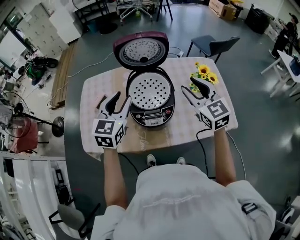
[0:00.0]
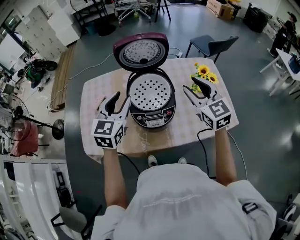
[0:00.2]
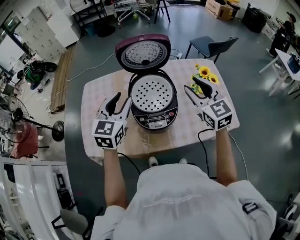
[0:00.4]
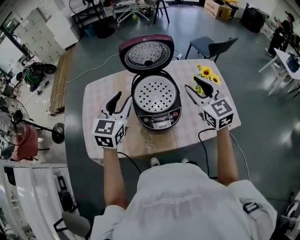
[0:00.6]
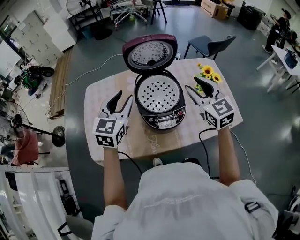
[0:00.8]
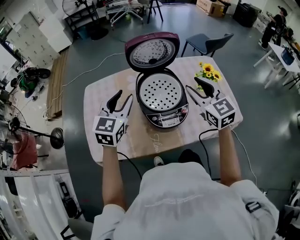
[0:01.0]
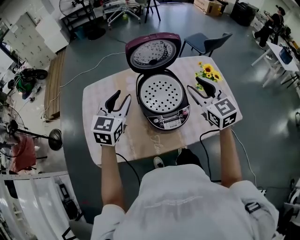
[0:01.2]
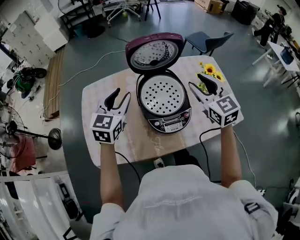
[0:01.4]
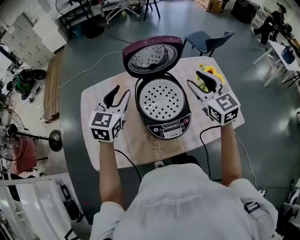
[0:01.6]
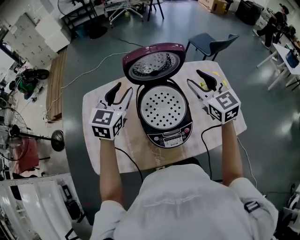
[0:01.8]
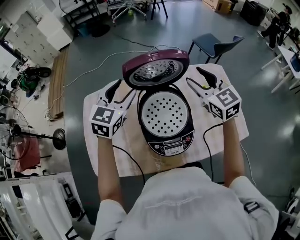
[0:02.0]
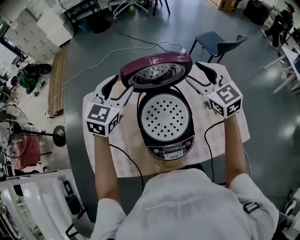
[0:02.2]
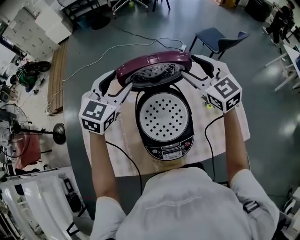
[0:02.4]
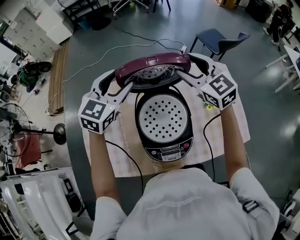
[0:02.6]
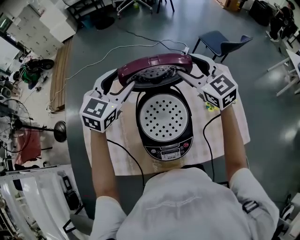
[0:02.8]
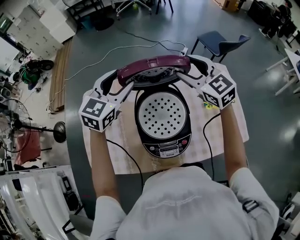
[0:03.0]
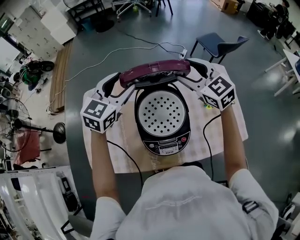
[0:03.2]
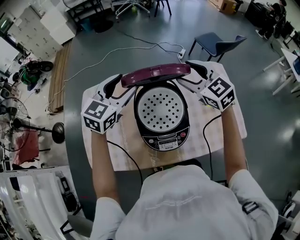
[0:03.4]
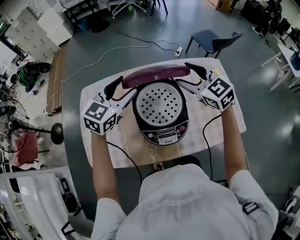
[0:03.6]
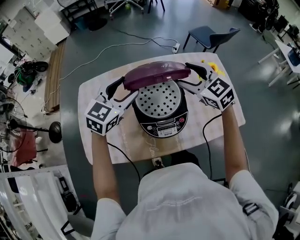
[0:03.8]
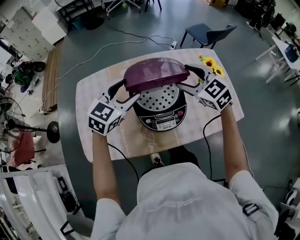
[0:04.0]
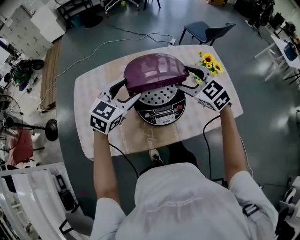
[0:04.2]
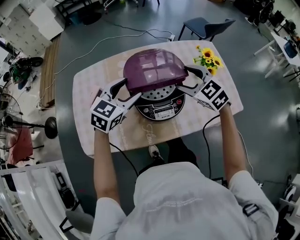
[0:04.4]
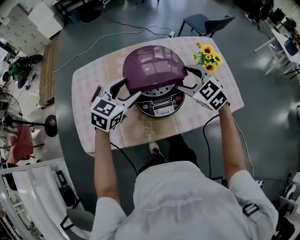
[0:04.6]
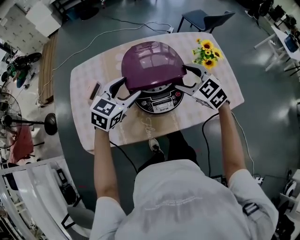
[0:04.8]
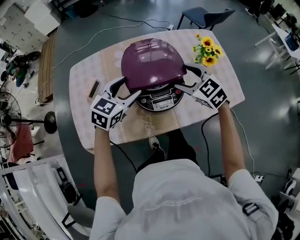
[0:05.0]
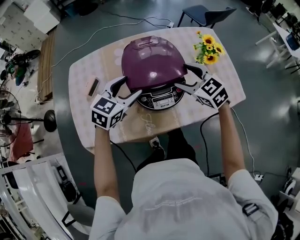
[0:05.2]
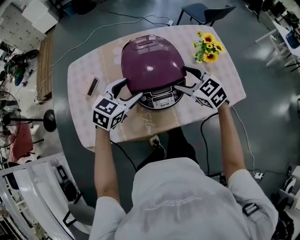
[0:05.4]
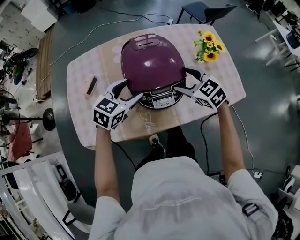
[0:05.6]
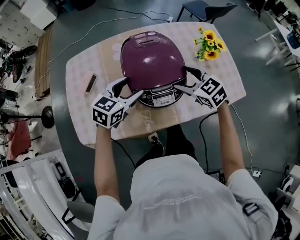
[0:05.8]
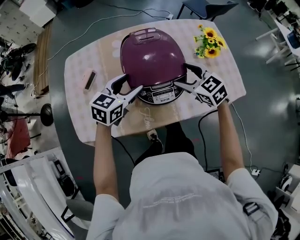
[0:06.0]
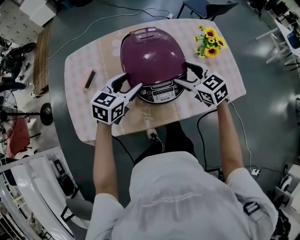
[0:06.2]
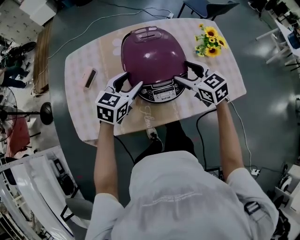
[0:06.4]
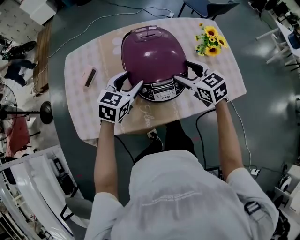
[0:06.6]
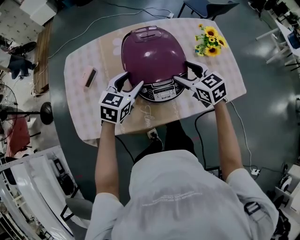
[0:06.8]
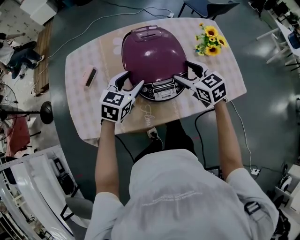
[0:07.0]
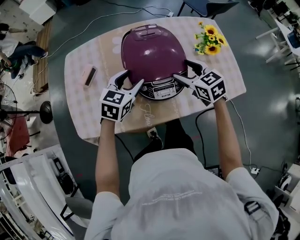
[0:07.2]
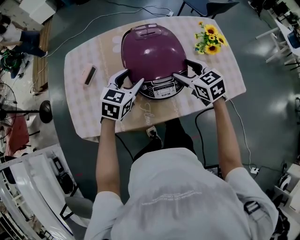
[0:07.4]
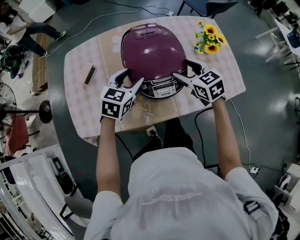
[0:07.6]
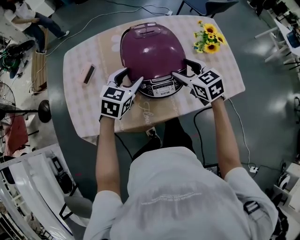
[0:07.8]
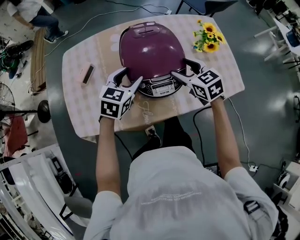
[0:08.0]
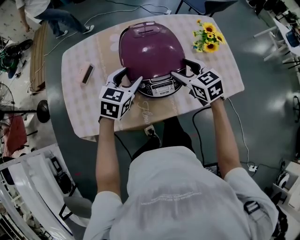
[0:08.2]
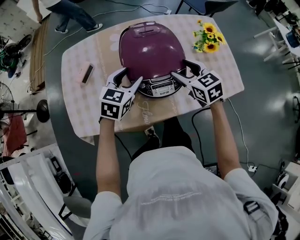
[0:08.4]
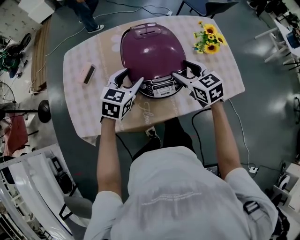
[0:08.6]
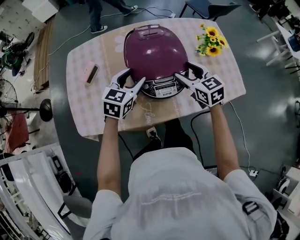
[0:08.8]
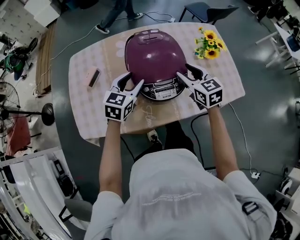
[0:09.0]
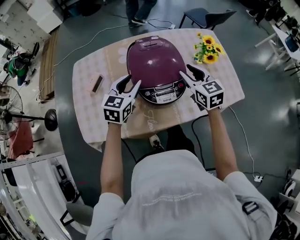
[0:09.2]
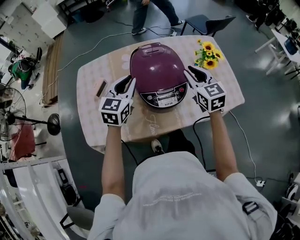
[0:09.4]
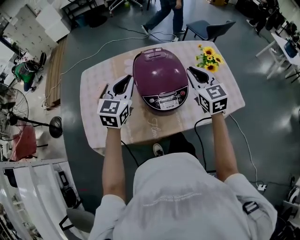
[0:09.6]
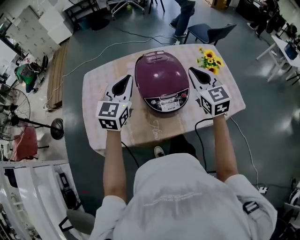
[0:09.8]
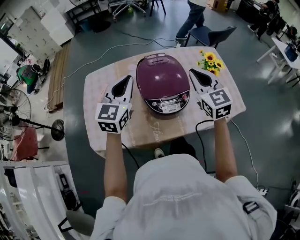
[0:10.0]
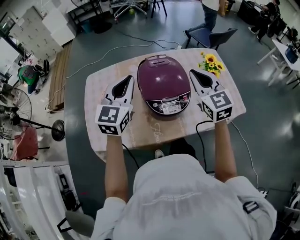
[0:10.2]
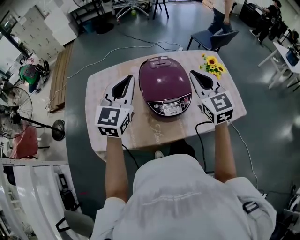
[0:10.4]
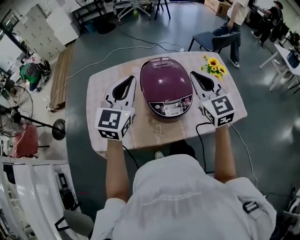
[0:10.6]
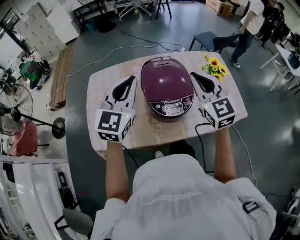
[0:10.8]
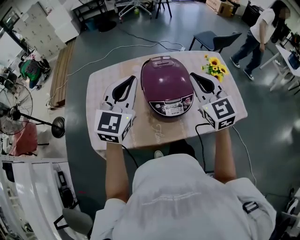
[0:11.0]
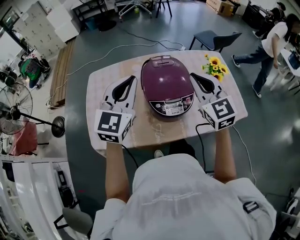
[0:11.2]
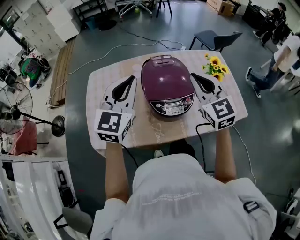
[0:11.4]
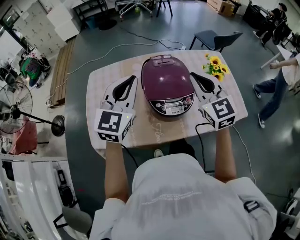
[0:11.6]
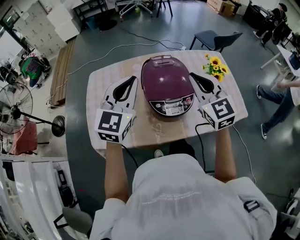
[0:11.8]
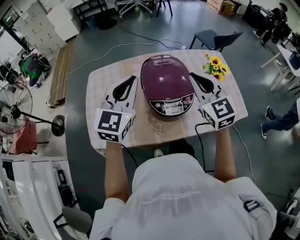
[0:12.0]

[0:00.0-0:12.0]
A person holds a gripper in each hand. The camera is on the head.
0:00.0 to 0:01.6: The left gripper is displaced forward and to the left by approximately 15 cm; the right gripper is displaced forward by about 5 cm.
0:01.6 to 0:03.0: Both grippers move forward, roughly 10 cm.
0:03.0 to 0:04.4: Both grippers travel together backward and downward, some 20 cm.
0:04.4 to 0:06.0: The two grippers go roughly 5 cm downward.
0:06.0 to 0:07.6: The grippers stay close to where they were, moving slightly.
0:07.6 to 0:09.0: There are only small adjustments of the grippers.
0:09.0 to 0:10.4: The two grippers go about 20 cm upward. The left gripper changes its angle by roughly 30 degrees, and closes up; the right gripper changes its angle by some 20 degrees, and closes up.
0:10.4 to 0:12.0: There are only small adjustments of the grippers.

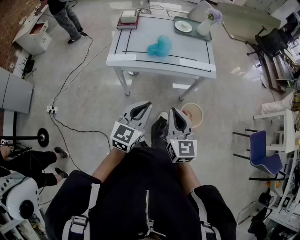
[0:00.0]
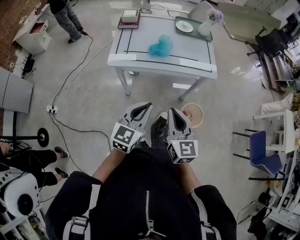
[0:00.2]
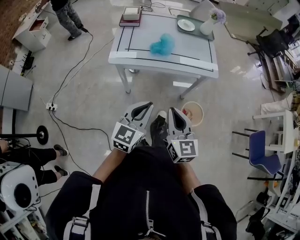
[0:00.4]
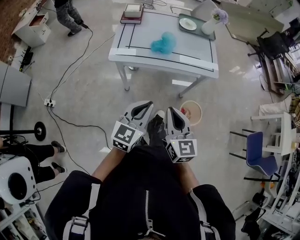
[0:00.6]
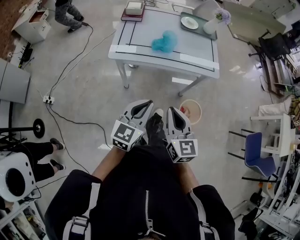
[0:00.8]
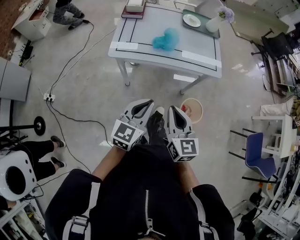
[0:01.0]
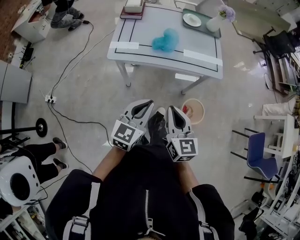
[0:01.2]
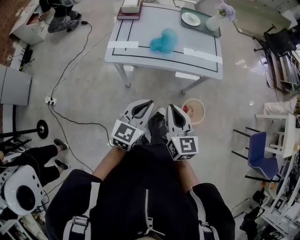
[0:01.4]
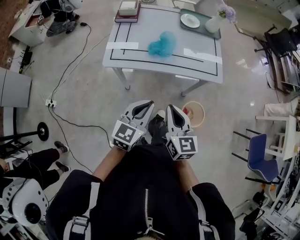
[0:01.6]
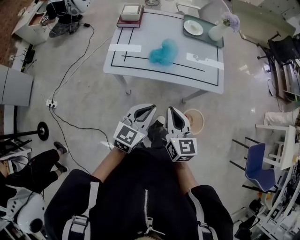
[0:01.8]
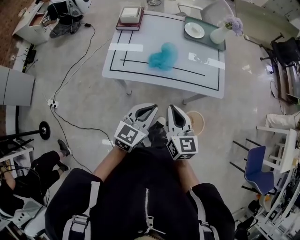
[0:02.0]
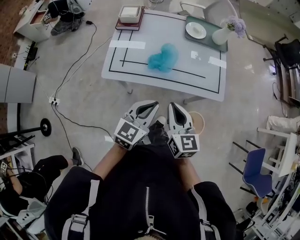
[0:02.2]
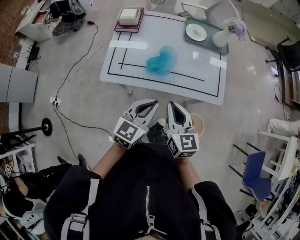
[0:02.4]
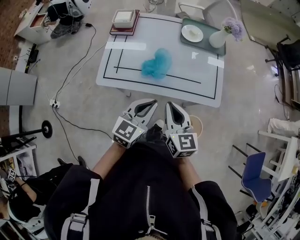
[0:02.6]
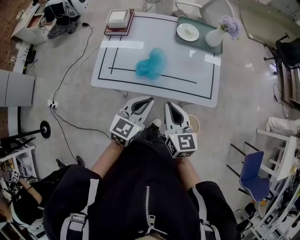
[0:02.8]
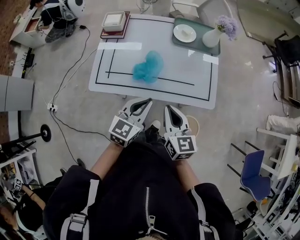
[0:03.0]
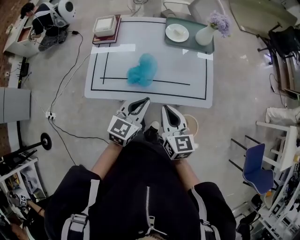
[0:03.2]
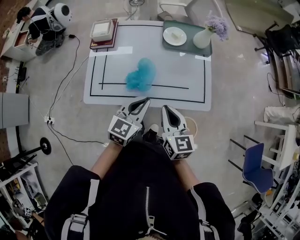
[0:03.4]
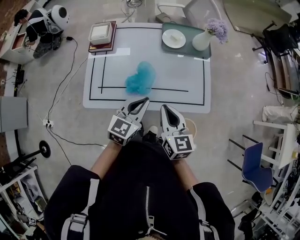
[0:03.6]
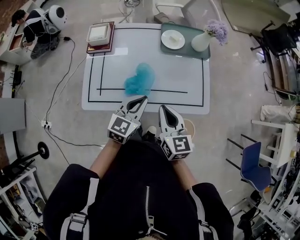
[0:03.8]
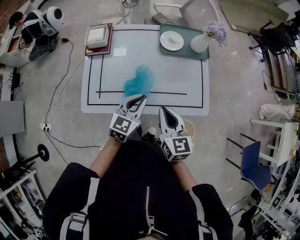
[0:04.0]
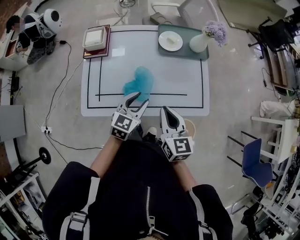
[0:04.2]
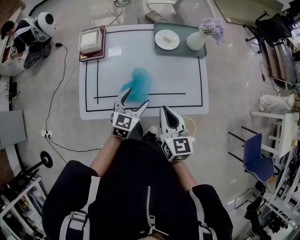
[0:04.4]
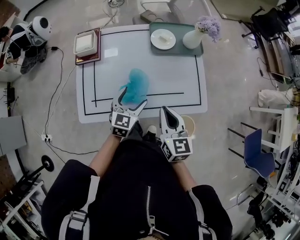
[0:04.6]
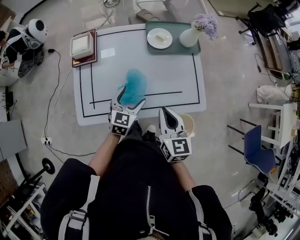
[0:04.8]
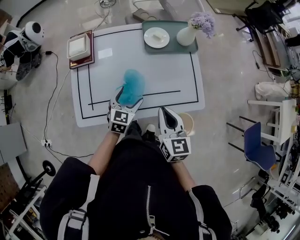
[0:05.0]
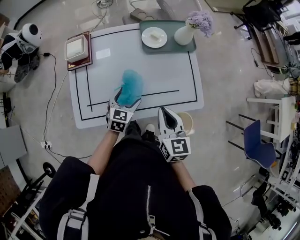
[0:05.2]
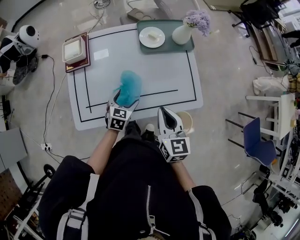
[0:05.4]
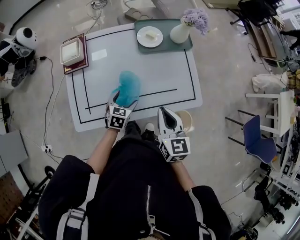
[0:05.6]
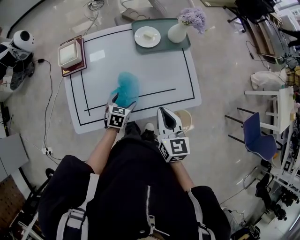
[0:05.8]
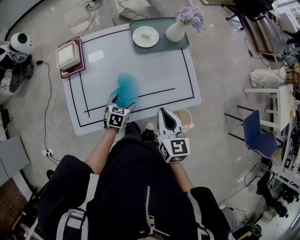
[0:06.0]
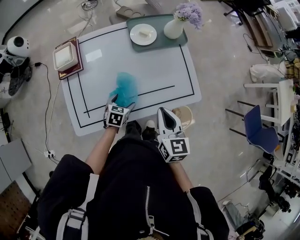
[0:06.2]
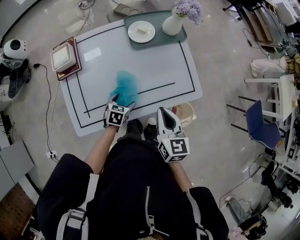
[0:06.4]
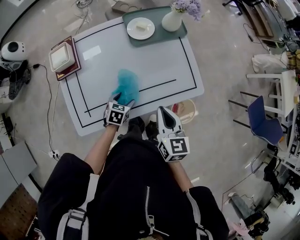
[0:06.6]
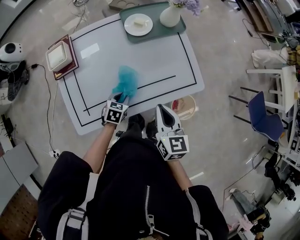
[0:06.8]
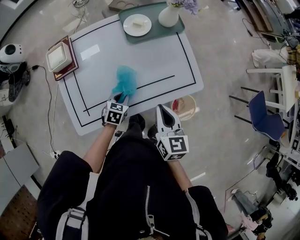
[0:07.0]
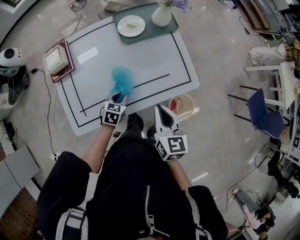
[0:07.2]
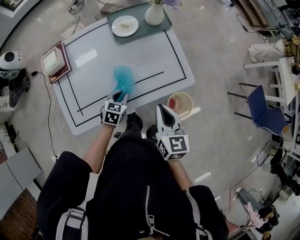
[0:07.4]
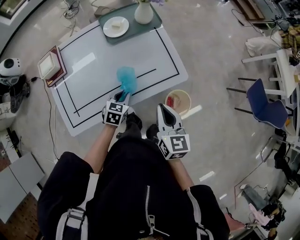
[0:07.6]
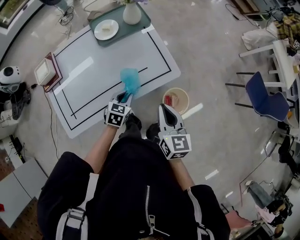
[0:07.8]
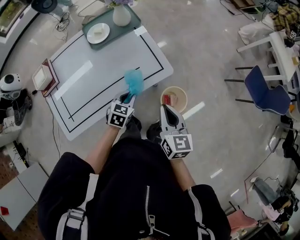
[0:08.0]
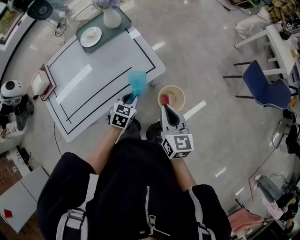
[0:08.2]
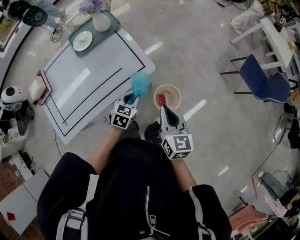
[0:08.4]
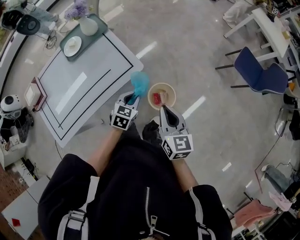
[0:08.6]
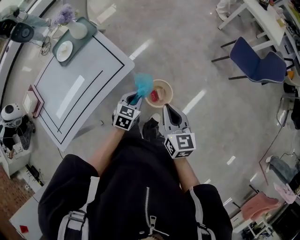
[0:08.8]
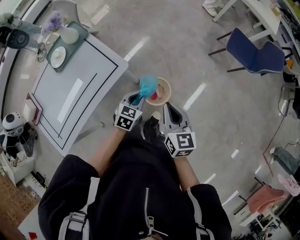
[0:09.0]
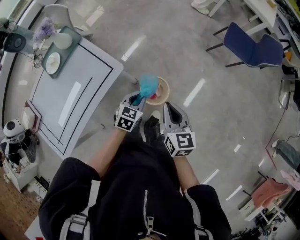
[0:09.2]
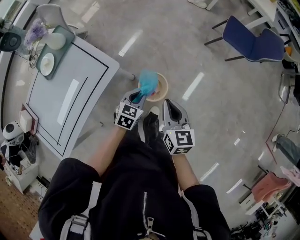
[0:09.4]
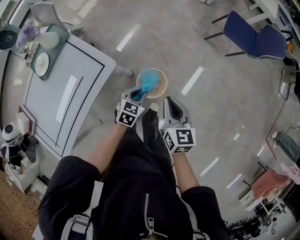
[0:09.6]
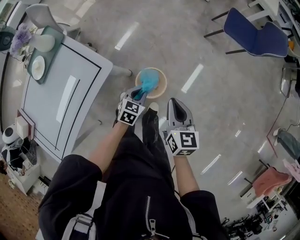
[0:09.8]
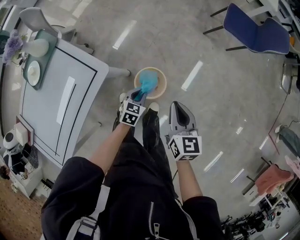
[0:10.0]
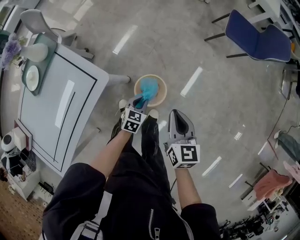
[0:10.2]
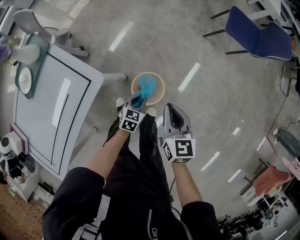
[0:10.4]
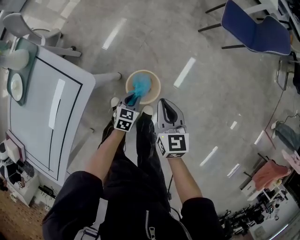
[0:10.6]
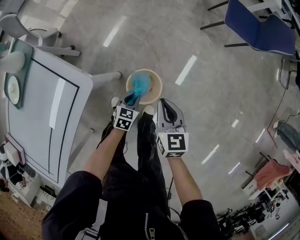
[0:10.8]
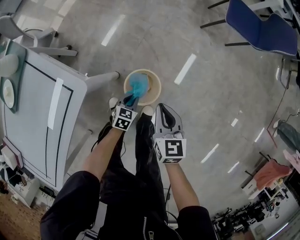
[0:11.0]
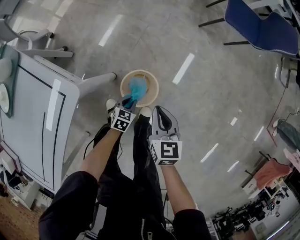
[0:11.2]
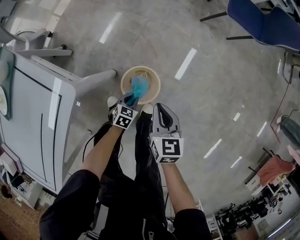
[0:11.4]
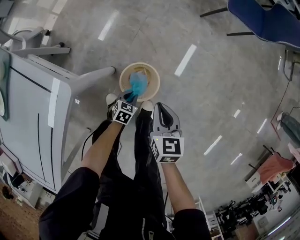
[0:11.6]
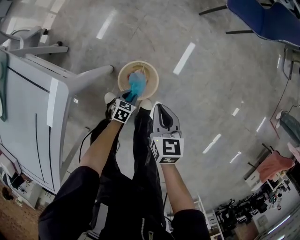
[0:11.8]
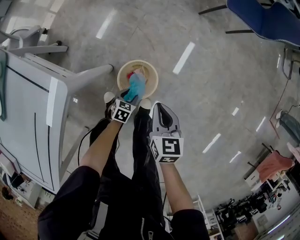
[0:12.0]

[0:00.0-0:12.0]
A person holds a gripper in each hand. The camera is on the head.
0:00.0 to 0:01.6: The grippers both shift forward by approximately 10 cm.
0:01.6 to 0:03.0: The grippers both shift forward by approximately 20 cm.
0:03.0 to 0:04.4: The right gripper goes roughly 10 cm forward. The left gripper goes approximately 15 cm forward and downward, and opens its fingers.
0:04.4 to 0:06.0: The left gripper travels downward by some 15 cm, and changes its angle by some 30 degrees.
0:06.0 to 0:07.6: Both grippers move to the right, roughly 10 cm. The left gripper closes its fingers.
0:07.6 to 0:09.0: The grippers both shift to the right by about 35 cm. The left gripper rotates approximately 30 degrees. The right gripper swivels roughly 20 degrees.
0:09.0 to 0:10.4: The left gripper moves downward, some 20 cm. Meanwhile the right gripper heads downward and forward, covering roughly 15 cm.
0:10.4 to 0:12.0: Both grippers move downward, some 20 cm. The left gripper opens its fingers.
